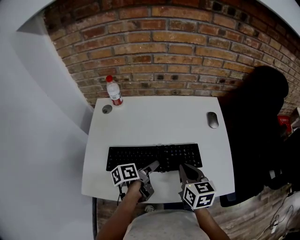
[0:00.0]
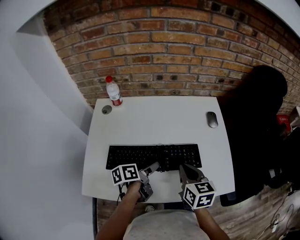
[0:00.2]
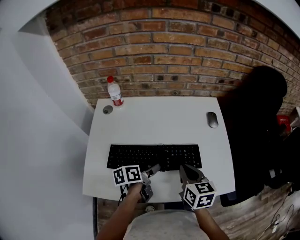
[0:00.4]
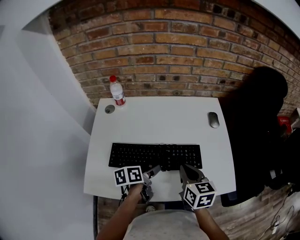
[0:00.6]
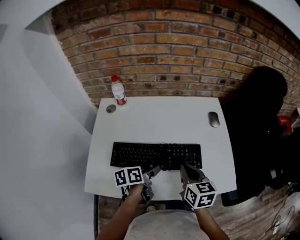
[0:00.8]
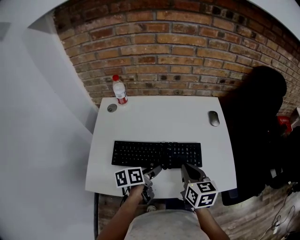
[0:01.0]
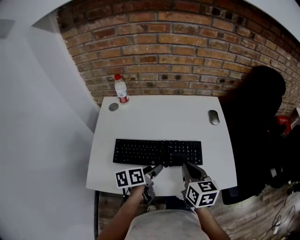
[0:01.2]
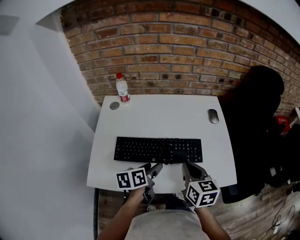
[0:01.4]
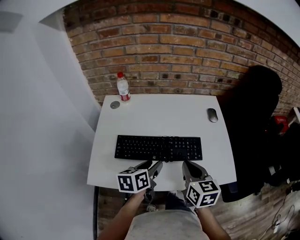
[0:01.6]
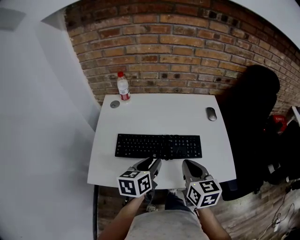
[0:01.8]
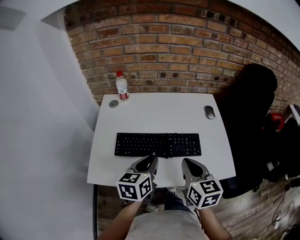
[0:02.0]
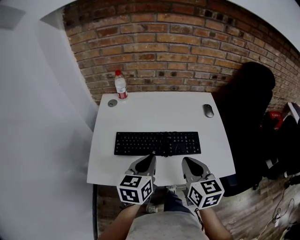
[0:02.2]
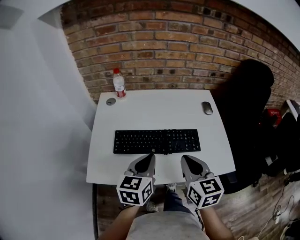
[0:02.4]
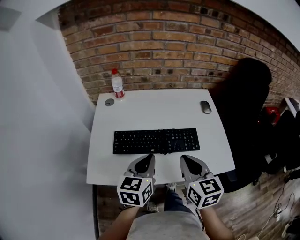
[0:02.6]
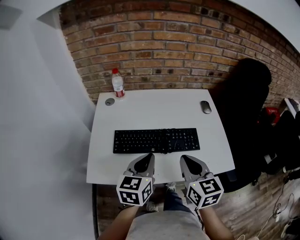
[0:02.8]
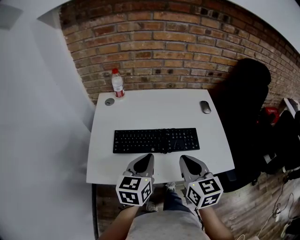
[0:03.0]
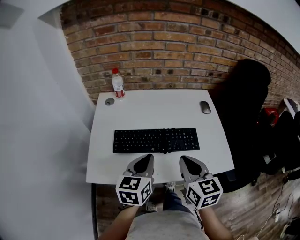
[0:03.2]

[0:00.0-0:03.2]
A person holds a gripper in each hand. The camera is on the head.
0:00.0 to 0:01.6: The right gripper ends up about 10 cm from where it was.
0:01.6 to 0:03.2: The right gripper changes place by some 5 cm.

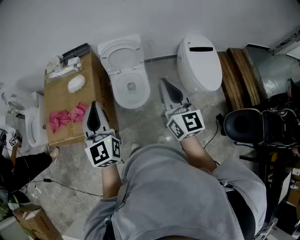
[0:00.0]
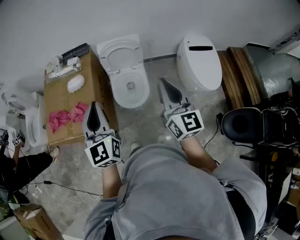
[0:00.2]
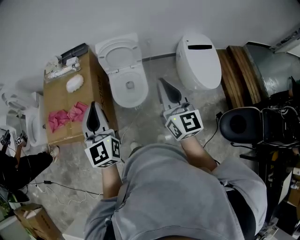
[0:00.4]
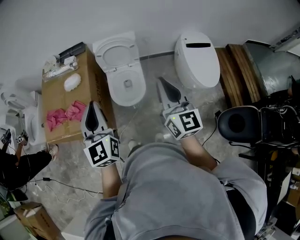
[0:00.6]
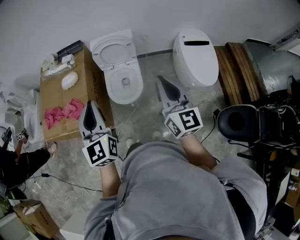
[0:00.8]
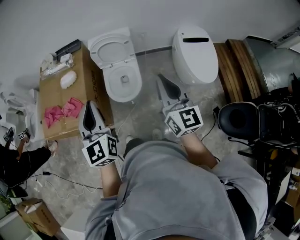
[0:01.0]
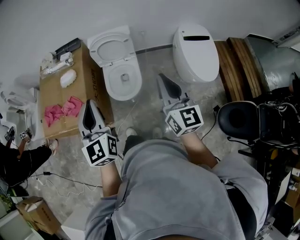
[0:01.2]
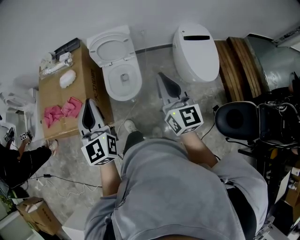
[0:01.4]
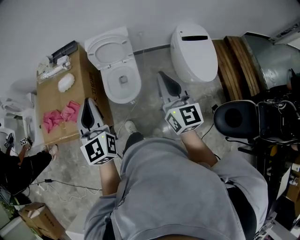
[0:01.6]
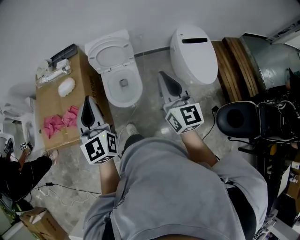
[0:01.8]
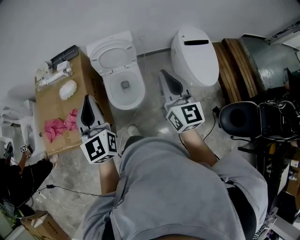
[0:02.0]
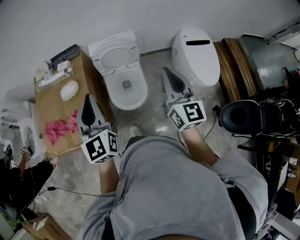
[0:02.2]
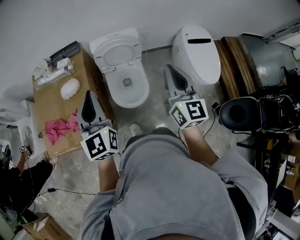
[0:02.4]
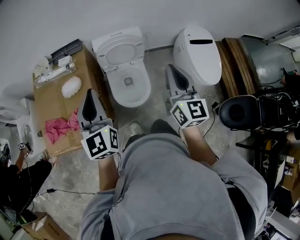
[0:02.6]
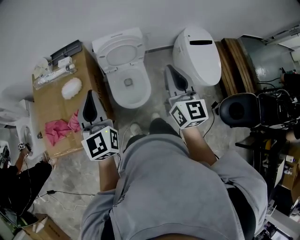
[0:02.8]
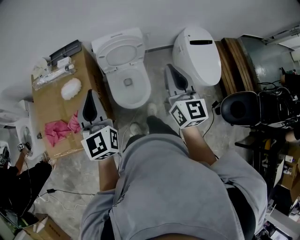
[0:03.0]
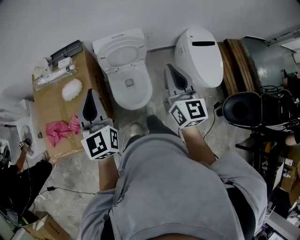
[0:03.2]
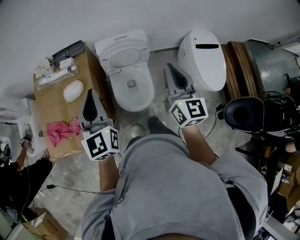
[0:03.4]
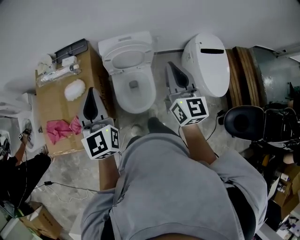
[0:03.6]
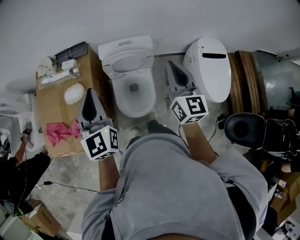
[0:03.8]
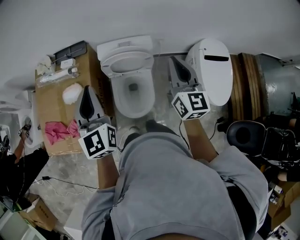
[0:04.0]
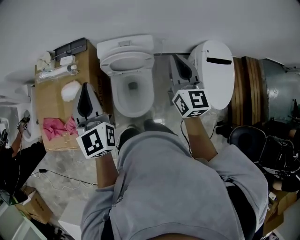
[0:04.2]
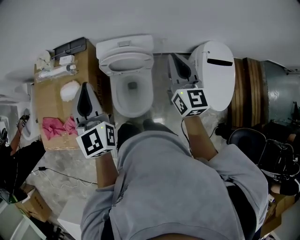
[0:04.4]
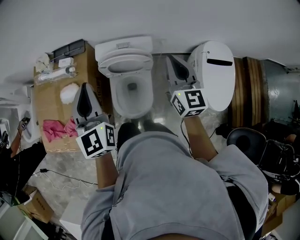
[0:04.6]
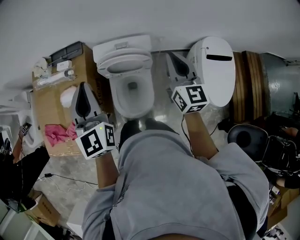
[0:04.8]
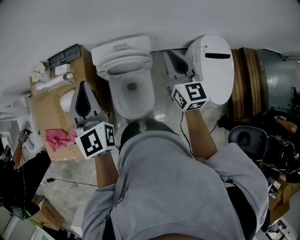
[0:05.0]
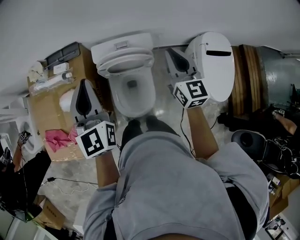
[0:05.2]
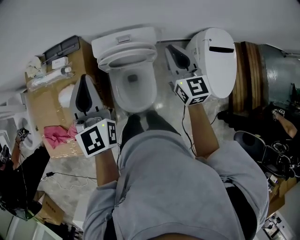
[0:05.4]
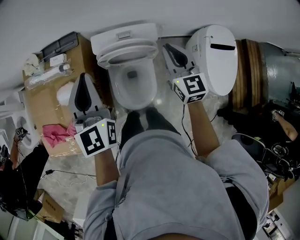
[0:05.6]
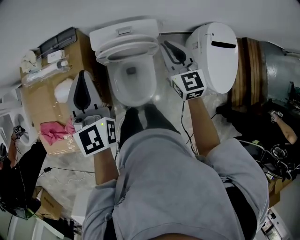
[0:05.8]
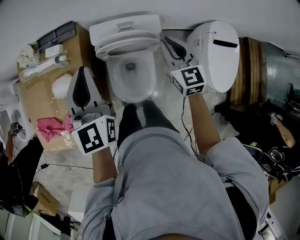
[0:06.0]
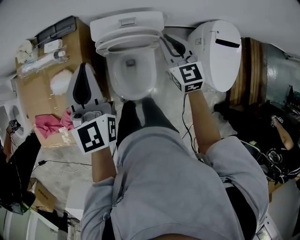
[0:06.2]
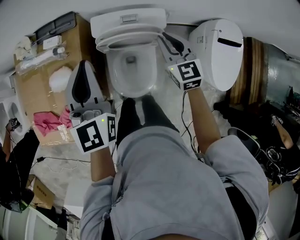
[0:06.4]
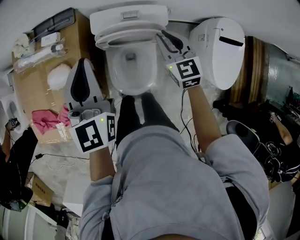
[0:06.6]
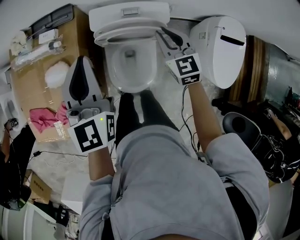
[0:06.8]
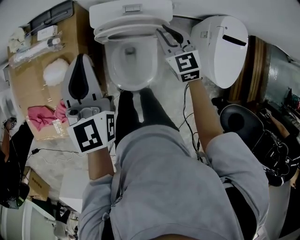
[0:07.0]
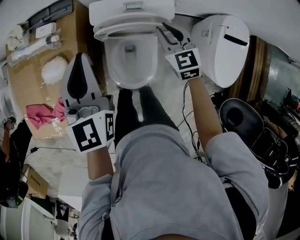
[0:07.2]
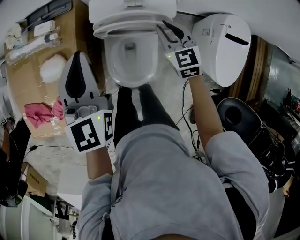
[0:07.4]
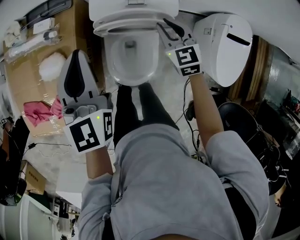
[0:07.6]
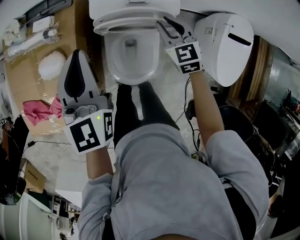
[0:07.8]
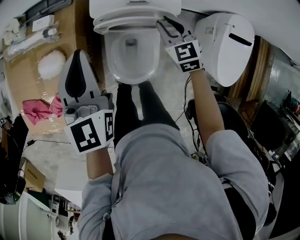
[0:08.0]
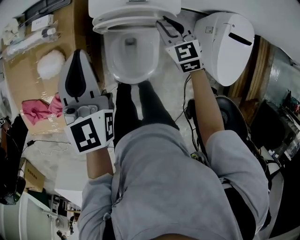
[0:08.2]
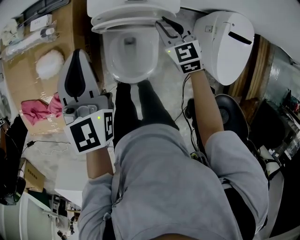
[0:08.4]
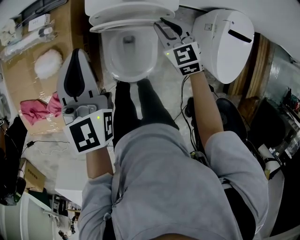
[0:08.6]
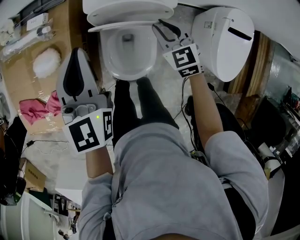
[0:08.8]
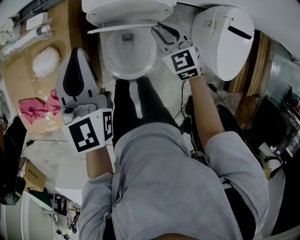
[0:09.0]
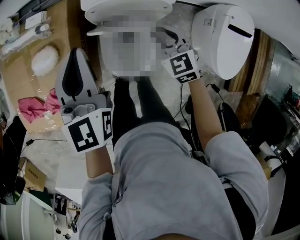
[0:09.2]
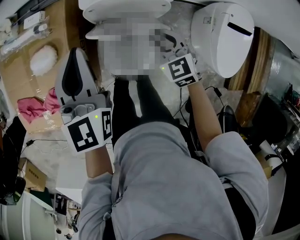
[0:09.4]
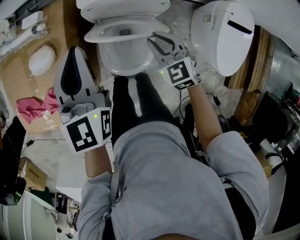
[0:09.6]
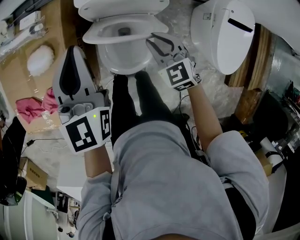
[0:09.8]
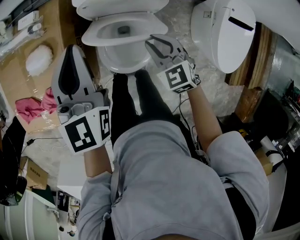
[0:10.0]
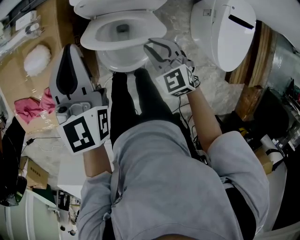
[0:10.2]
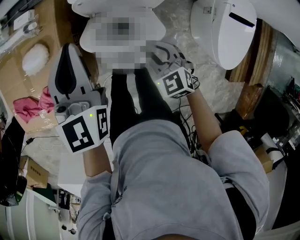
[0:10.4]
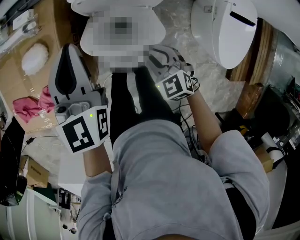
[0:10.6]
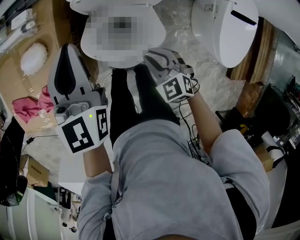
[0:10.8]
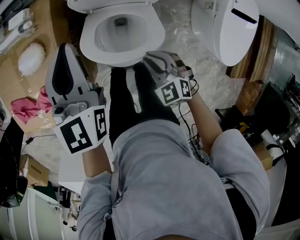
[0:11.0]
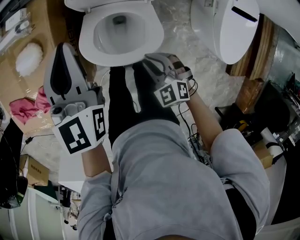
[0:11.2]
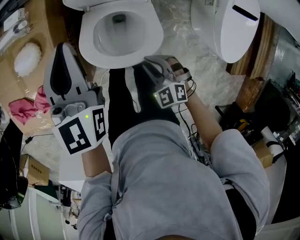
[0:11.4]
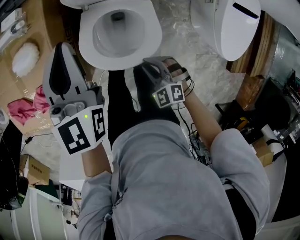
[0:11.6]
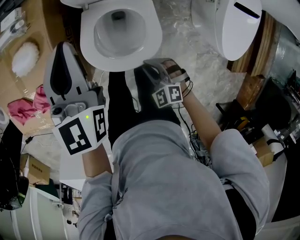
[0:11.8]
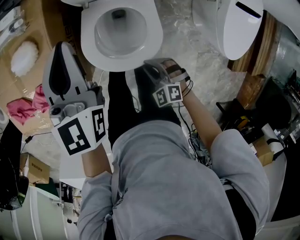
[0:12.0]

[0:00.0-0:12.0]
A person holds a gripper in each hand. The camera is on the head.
0:00.0 to 0:01.6: Both grippers move to the right, about 5 cm.
0:01.6 to 0:03.0: Both grippers move forward and to the left, some 20 cm.
0:03.0 to 0:04.4: Both grippers travel together forward and to the right, approximately 20 cm.
0:04.4 to 0:06.0: The left gripper goes about 10 cm forward and downward, while the right gripper shifts about 15 cm downward, forward and to the left, and rotates roughly 20 degrees.
0:06.0 to 0:07.6: The left gripper moves downward, approximately 5 cm. The right gripper travels downward by approximately 15 cm.
0:07.6 to 0:09.0: The right gripper is displaced backward by some 5 cm.
0:09.0 to 0:10.4: The right gripper is displaced backward by roughly 10 cm.
0:10.4 to 0:12.0: The left gripper goes about 5 cm downward, while the right gripper is displaced backward, downward and to the left by approximately 20 cm, and changes its angle by about 20 degrees.

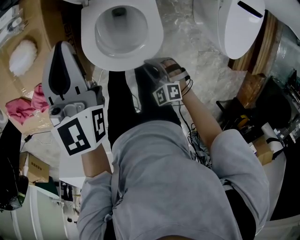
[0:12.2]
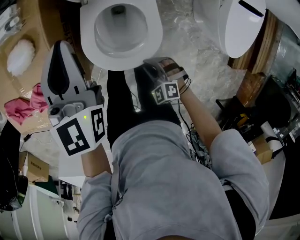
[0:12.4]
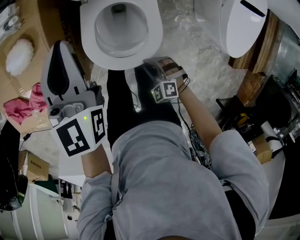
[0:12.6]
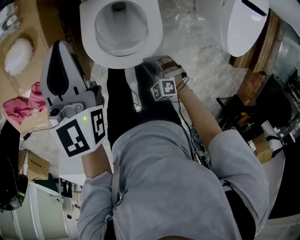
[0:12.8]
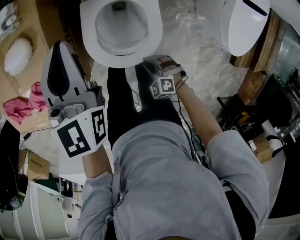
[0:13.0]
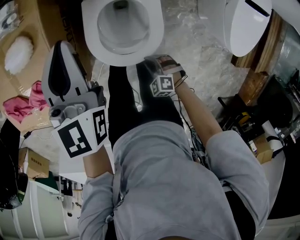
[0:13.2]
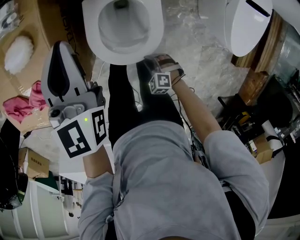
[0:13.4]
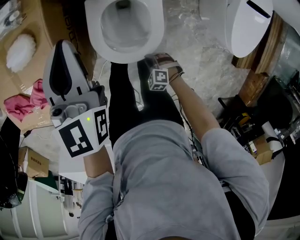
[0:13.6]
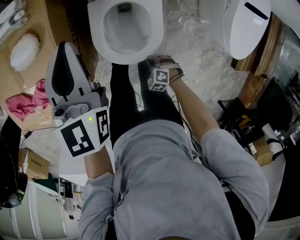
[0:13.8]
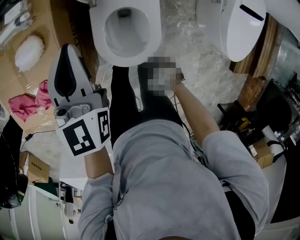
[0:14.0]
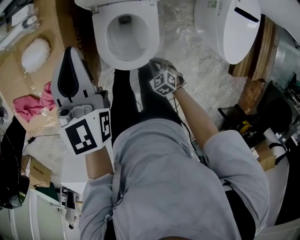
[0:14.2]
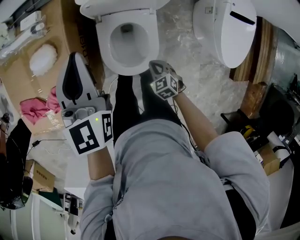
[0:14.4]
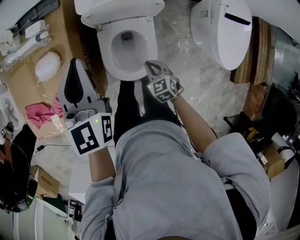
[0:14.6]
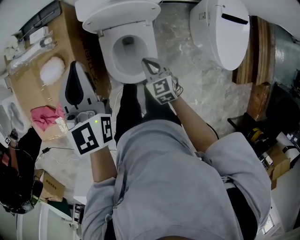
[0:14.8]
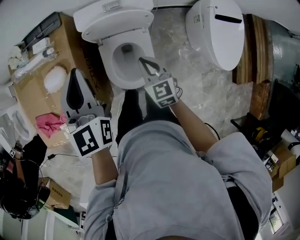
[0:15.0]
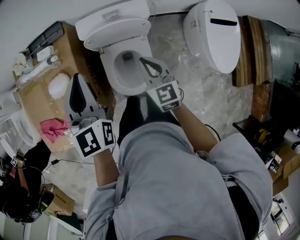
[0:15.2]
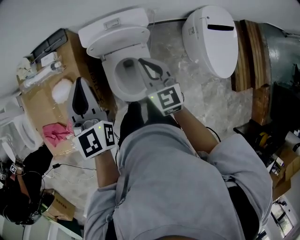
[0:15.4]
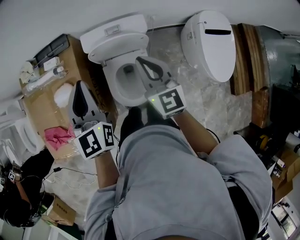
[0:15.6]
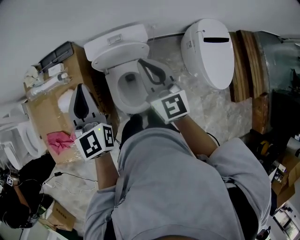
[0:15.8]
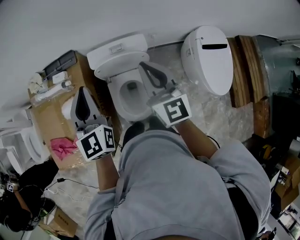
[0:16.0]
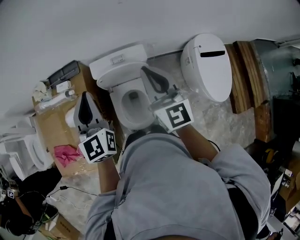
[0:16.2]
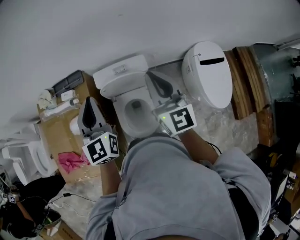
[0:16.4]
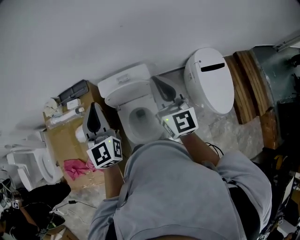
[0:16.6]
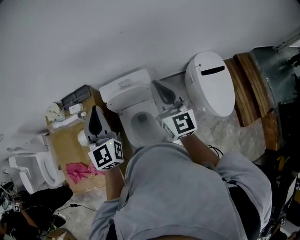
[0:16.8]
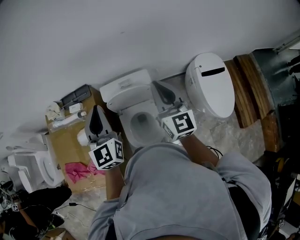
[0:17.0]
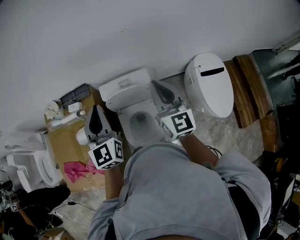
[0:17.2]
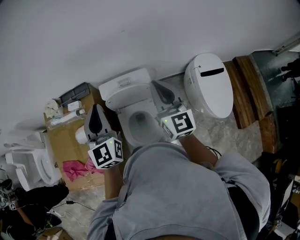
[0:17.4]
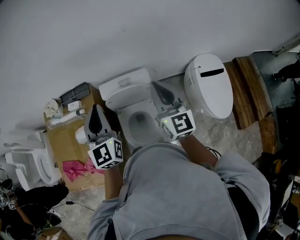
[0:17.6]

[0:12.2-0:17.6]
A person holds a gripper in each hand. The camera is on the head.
0:12.2 to 0:13.6: The right gripper travels downward by some 15 cm.
0:13.6 to 0:15.0: The right gripper travels upward by about 35 cm, and angles its fingers upward, by roughly 40 degrees. The left gripper shifts approximately 15 cm upward.
0:15.0 to 0:16.2: The right gripper shifts some 30 cm upward, and angles its fingers upward, by some 30 degrees; the left gripper is displaced upward by about 10 cm.
0:16.2 to 0:17.6: The grippers make only small movements.

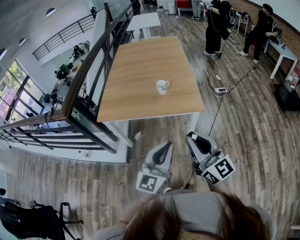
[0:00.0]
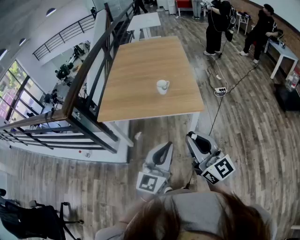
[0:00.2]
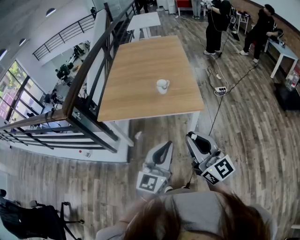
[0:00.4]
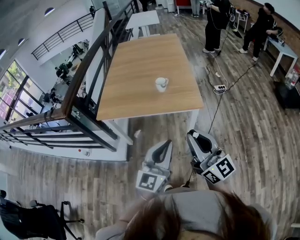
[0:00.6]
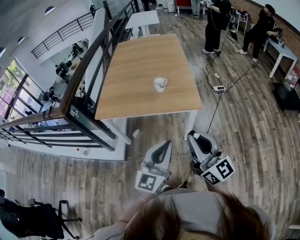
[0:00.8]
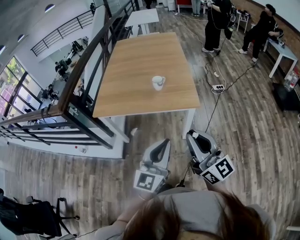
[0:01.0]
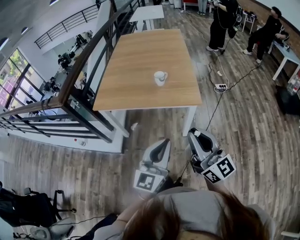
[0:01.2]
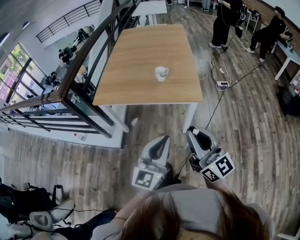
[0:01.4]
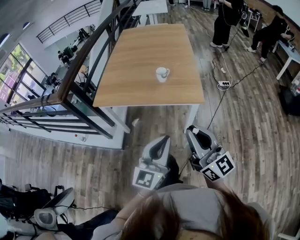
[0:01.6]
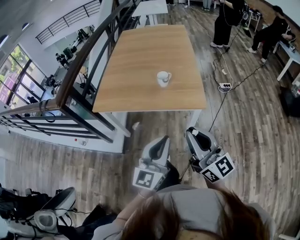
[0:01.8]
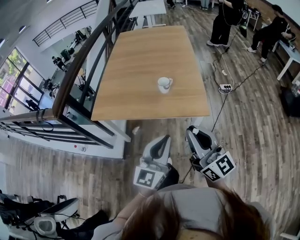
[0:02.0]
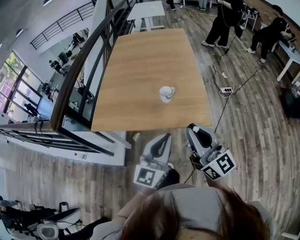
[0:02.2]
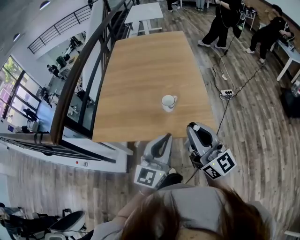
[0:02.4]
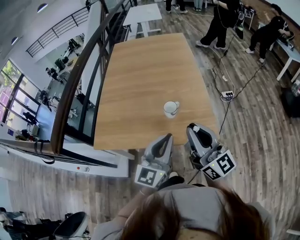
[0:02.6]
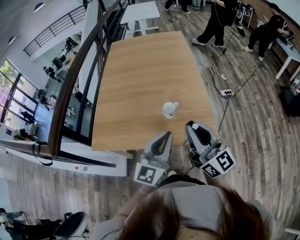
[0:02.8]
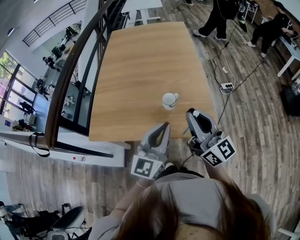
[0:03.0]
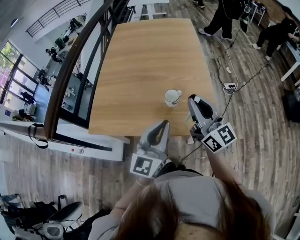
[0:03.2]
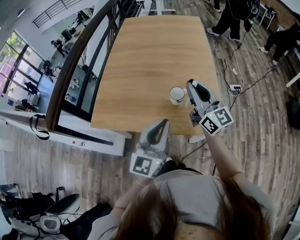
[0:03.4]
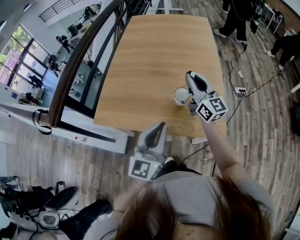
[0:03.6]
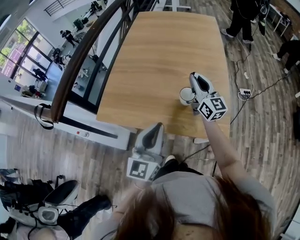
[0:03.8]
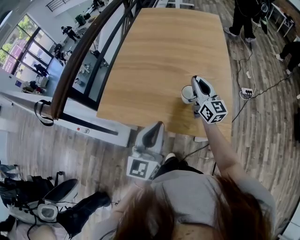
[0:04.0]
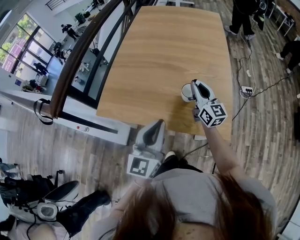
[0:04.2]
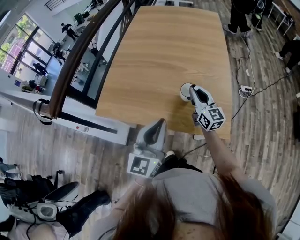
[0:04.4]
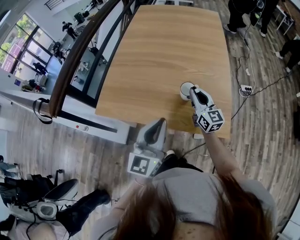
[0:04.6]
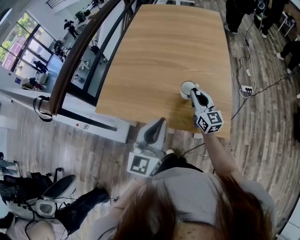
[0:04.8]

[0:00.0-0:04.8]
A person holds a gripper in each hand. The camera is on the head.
0:00.0 to 0:01.6: The grippers stay close to where they were, moving slightly.
0:01.6 to 0:03.2: The two grippers go approximately 30 cm forward.
0:03.2 to 0:04.8: The left gripper travels to the left by some 5 cm. The right gripper goes approximately 20 cm downward and forward.
